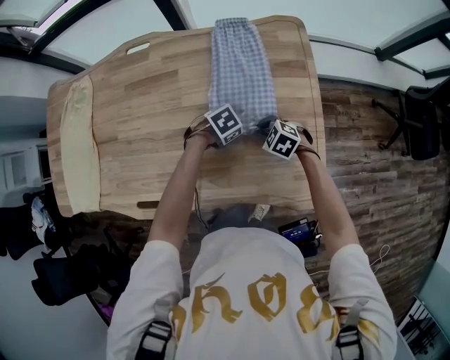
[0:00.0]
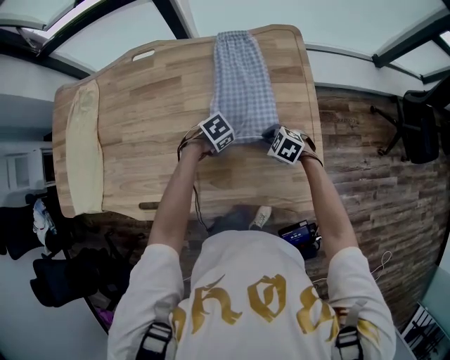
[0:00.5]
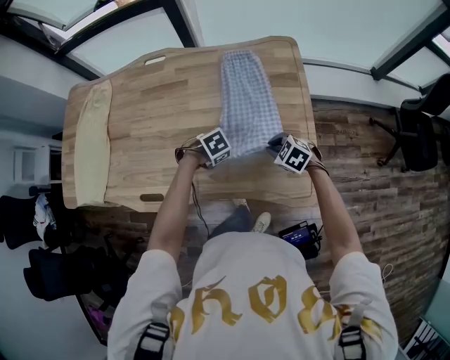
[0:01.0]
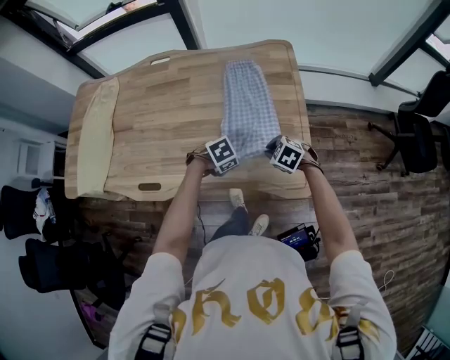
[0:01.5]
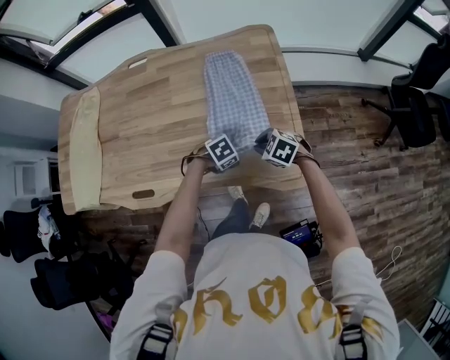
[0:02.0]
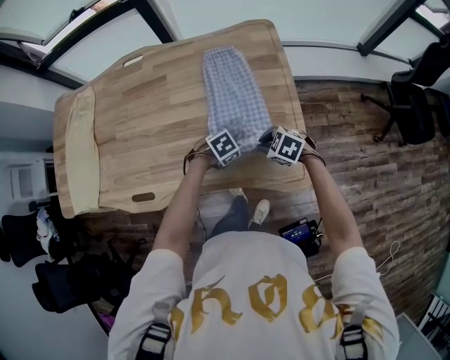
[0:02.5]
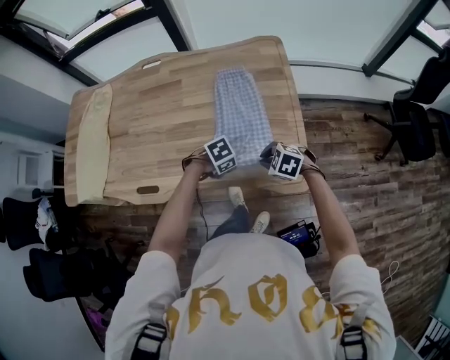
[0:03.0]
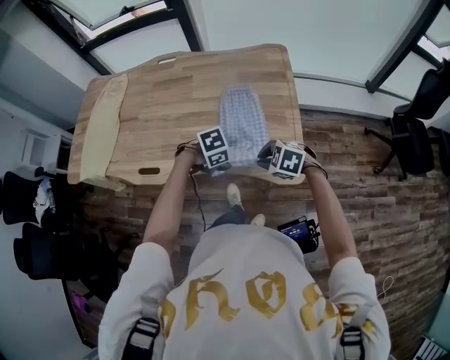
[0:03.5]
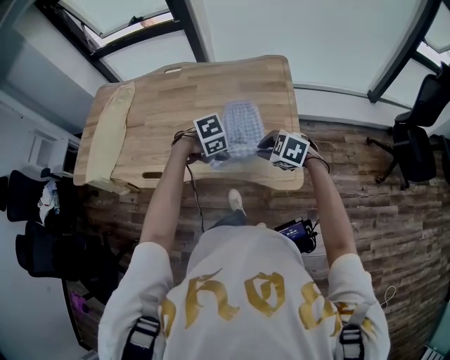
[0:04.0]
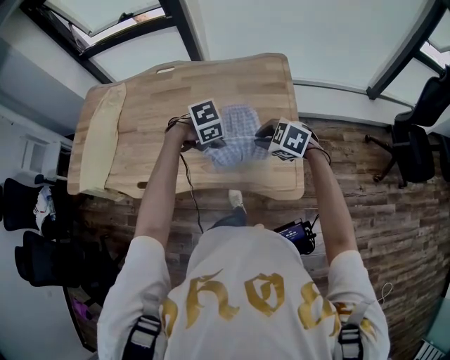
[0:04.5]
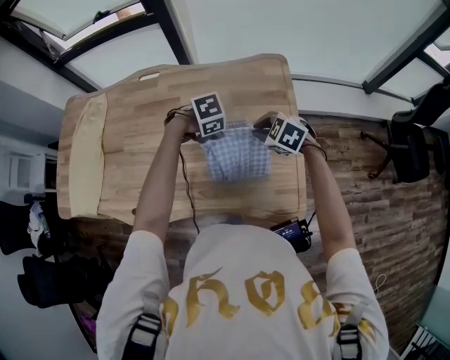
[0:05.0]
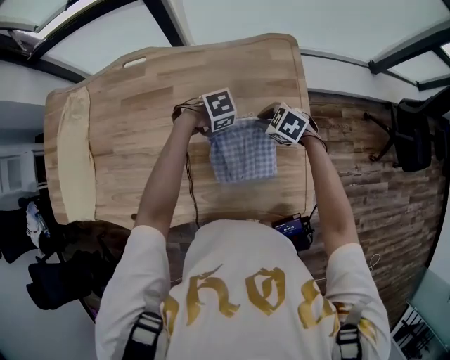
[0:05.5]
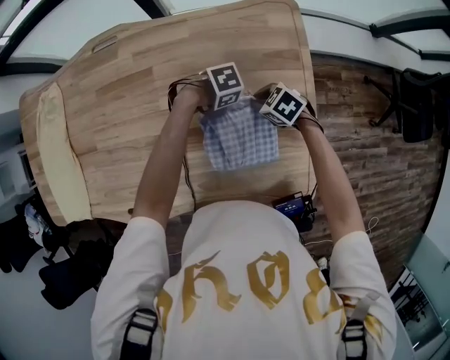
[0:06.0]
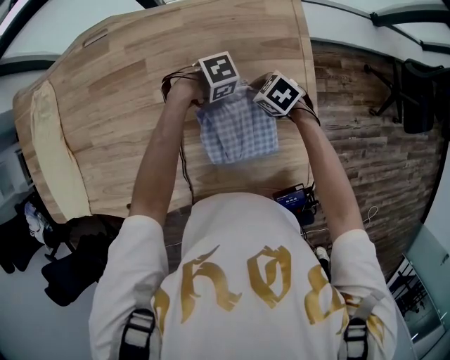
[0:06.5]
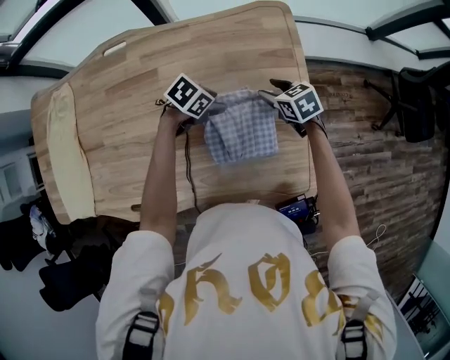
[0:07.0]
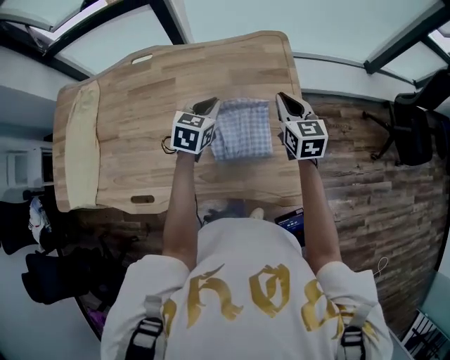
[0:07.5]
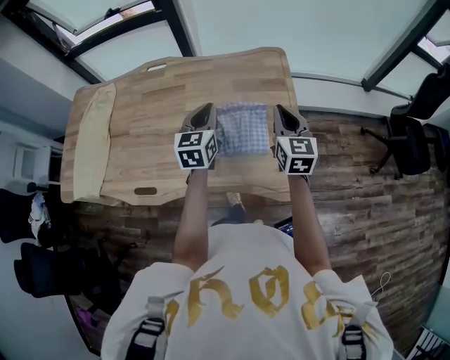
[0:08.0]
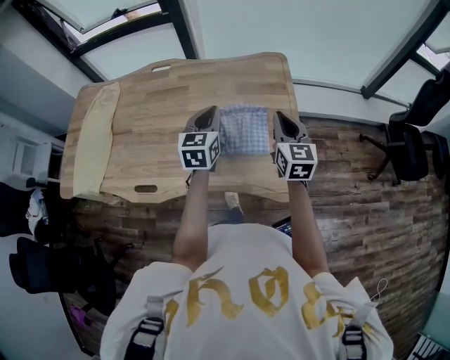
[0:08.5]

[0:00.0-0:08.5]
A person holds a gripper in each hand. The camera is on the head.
0:00.0 to 0:02.0: The left gripper shifts by roughly 15 cm, and opens up, while the right gripper shifts by some 15 cm.
0:02.0 to 0:04.0: Both grippers move upward, about 15 cm. The left gripper closes its fingers.
0:04.0 to 0:06.5: The right gripper ends up some 40 cm from where it was, and swivels about 40 degrees, while the left gripper changes place by roughly 40 cm, and swivels about 20 degrees.
0:06.5 to 0:08.5: The two grippers go about 30 cm upward. The left gripper angles its fingers upward, by some 40 degrees, and opens, then closes once more. The right gripper angles its fingers upward, by approximately 50 degrees, and opens, then closes again.

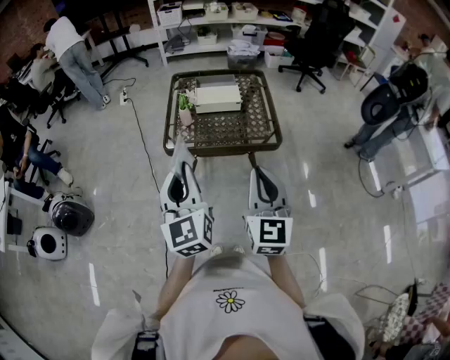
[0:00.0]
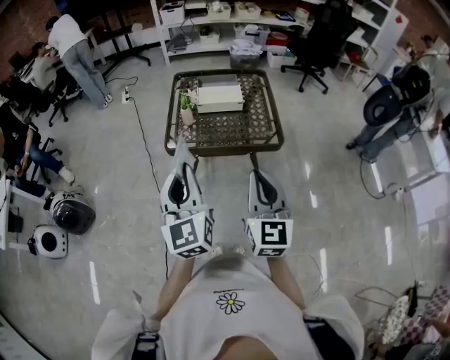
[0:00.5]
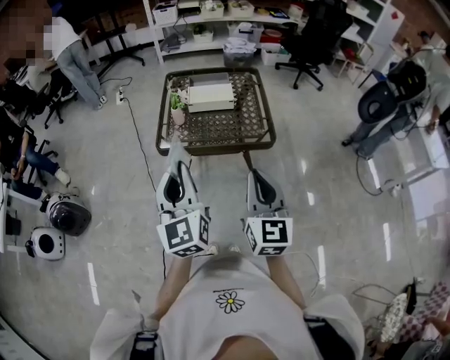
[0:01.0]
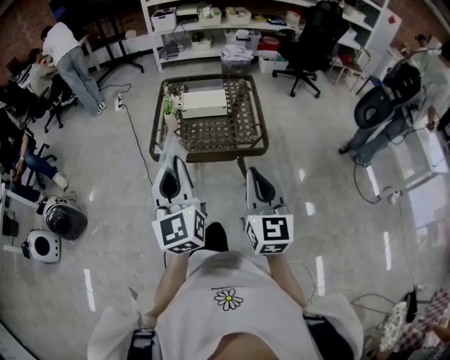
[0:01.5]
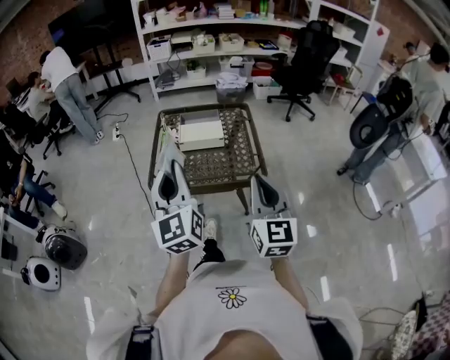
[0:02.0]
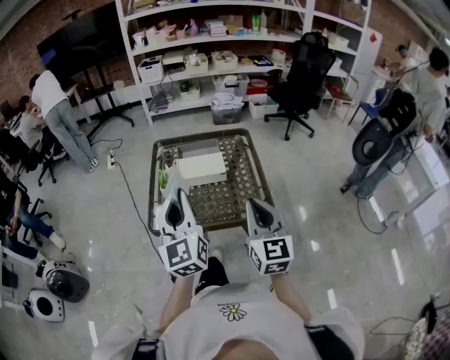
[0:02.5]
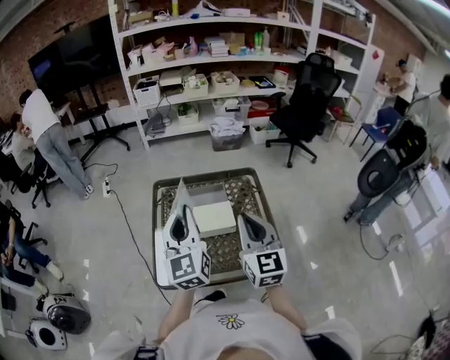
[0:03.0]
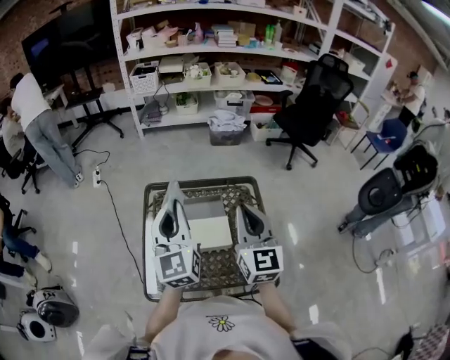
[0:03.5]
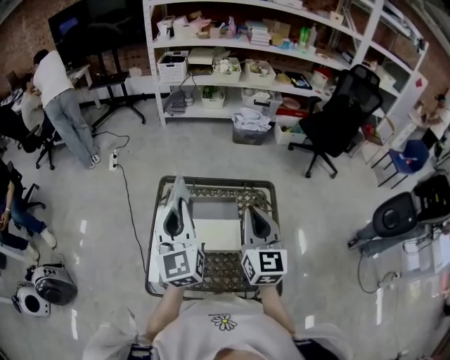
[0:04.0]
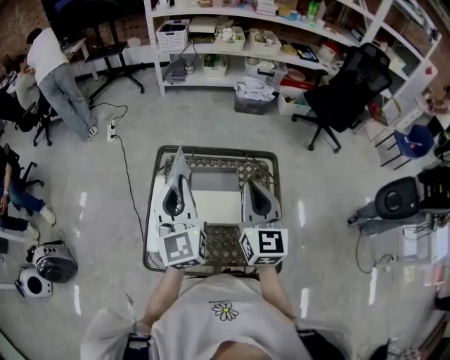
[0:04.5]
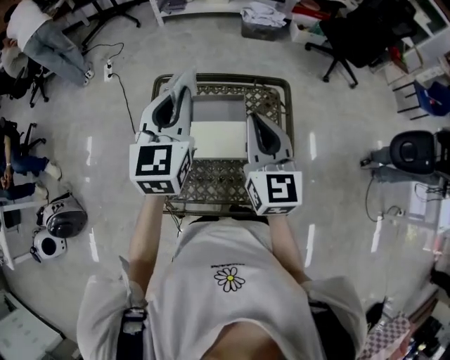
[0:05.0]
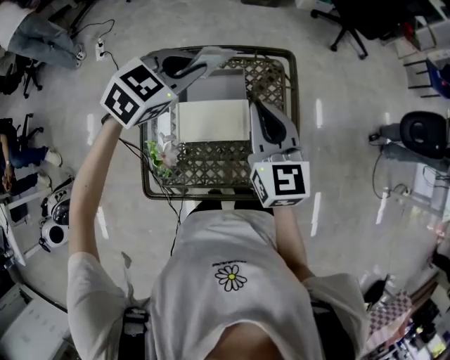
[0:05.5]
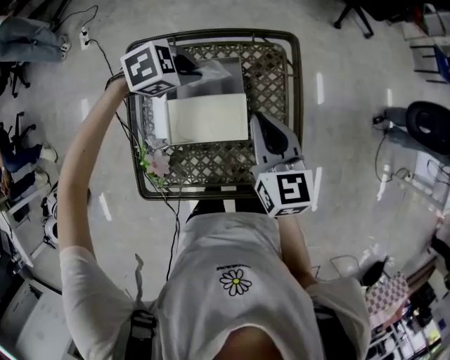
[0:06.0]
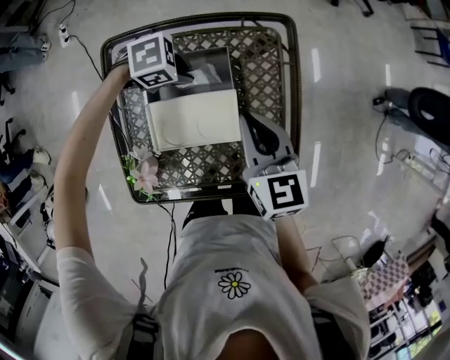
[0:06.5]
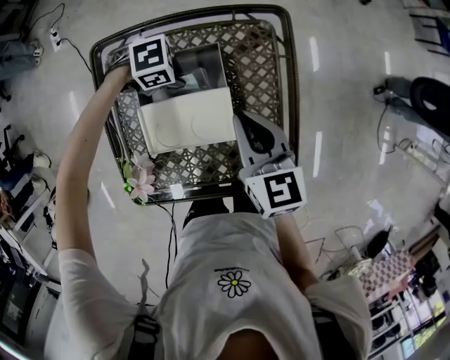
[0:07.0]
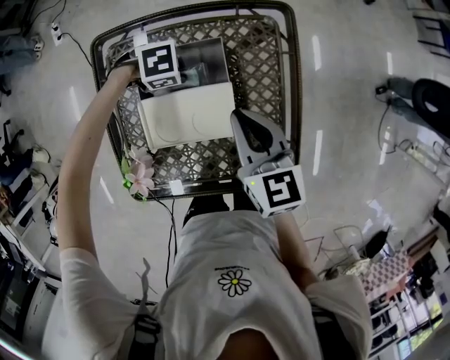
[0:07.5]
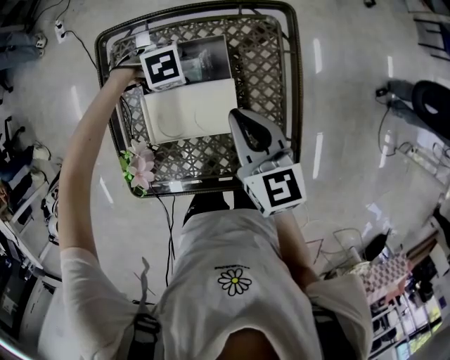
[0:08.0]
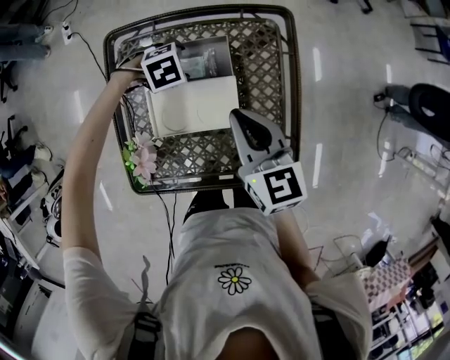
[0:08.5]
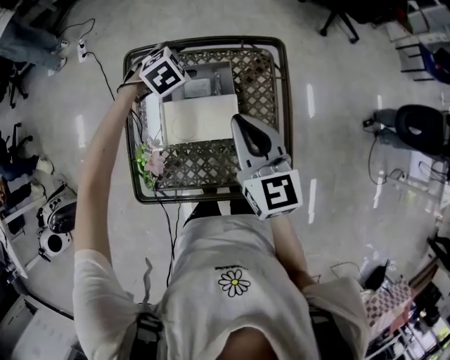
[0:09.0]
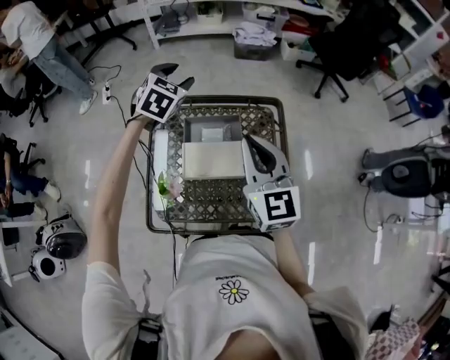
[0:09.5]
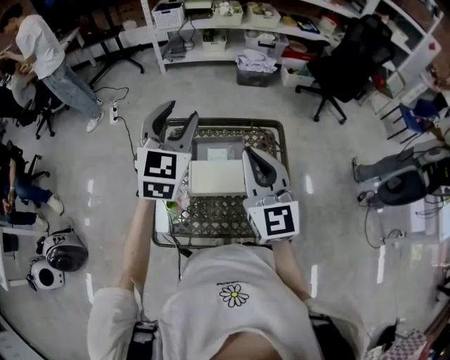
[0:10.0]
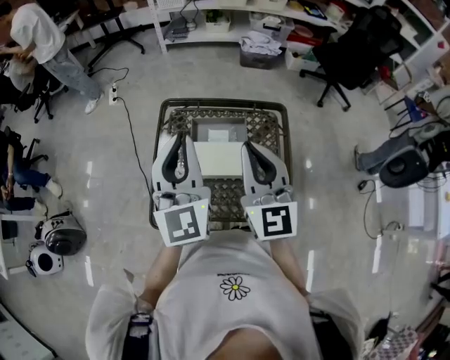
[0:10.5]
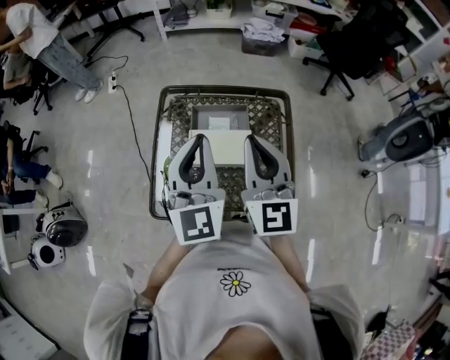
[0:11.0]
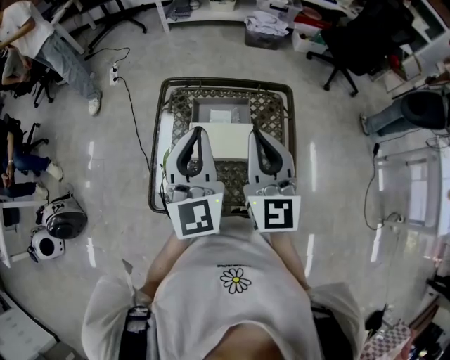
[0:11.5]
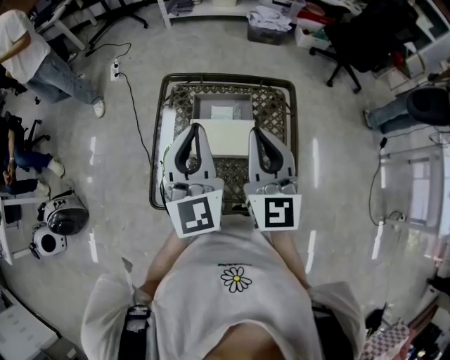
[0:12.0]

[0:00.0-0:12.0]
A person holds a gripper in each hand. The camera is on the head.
0:00.0 to 0:02.0: The right gripper goes approximately 10 cm to the right and forward. Meanwhile the left gripper goes approximately 10 cm forward and to the right.
0:02.0 to 0:04.0: The two grippers travel together, forward, some 50 cm.
0:04.0 to 0:06.0: The left gripper travels downward by about 30 cm, and tips its fingers downward by about 60 degrees, while the right gripper moves downward, roughly 15 cm, and turns by about 20 degrees.
0:06.0 to 0:08.0: The right gripper is displaced downward by some 5 cm; the left gripper goes roughly 15 cm downward, and opens up.
0:08.0 to 0:10.0: The left gripper is displaced upward by roughly 50 cm, and tips its fingers upward by some 70 degrees, while the right gripper travels upward by approximately 25 cm, and rotates approximately 40 degrees.
0:10.0 to 0:12.0: The left gripper is displaced backward by roughly 10 cm, rotates some 30 degrees, and closes.

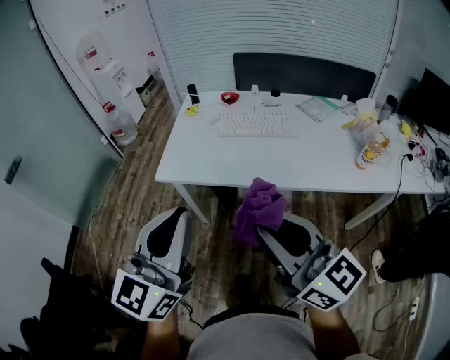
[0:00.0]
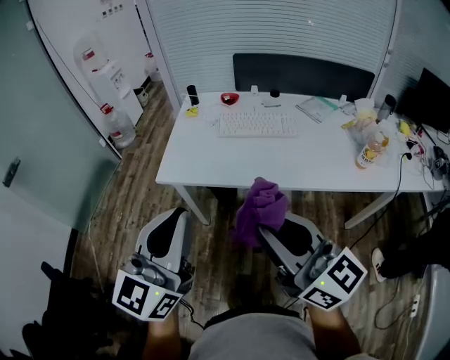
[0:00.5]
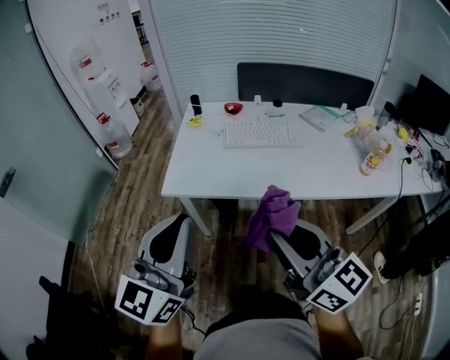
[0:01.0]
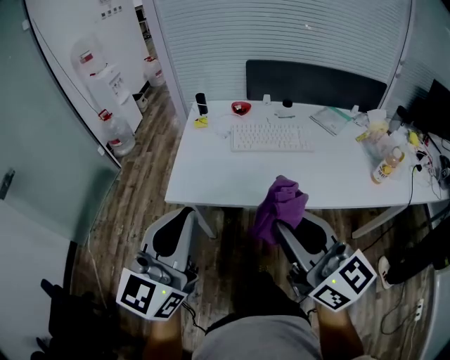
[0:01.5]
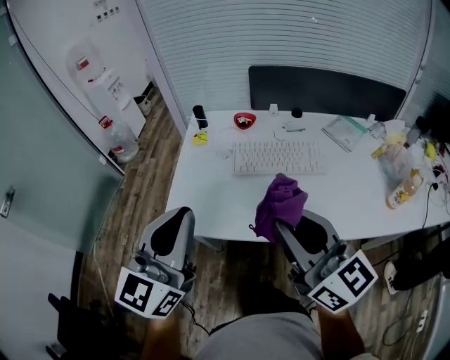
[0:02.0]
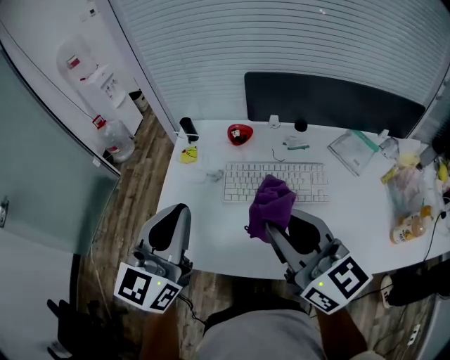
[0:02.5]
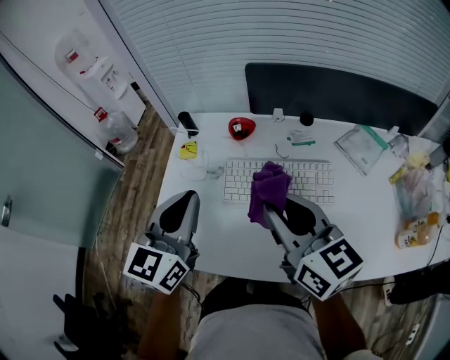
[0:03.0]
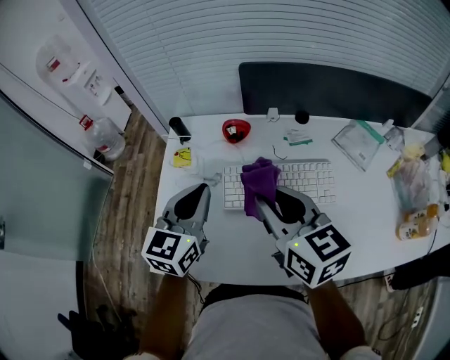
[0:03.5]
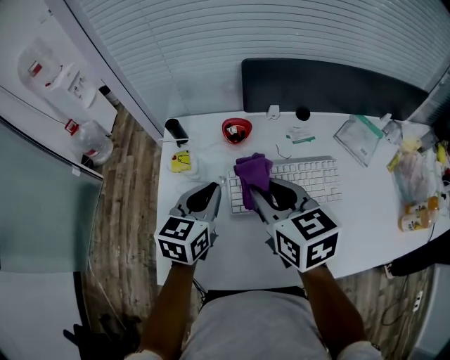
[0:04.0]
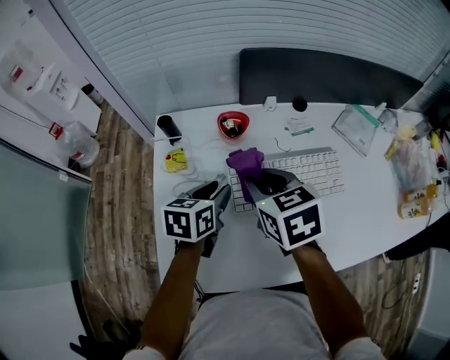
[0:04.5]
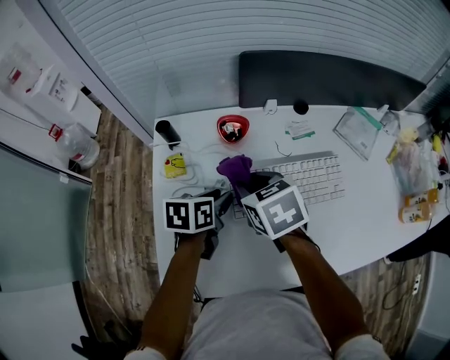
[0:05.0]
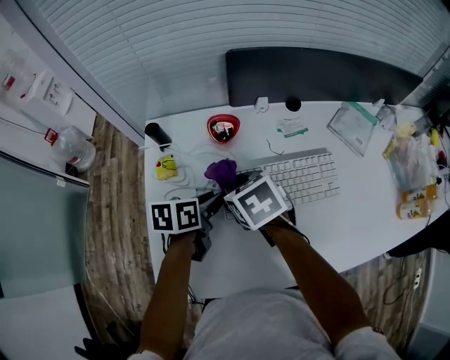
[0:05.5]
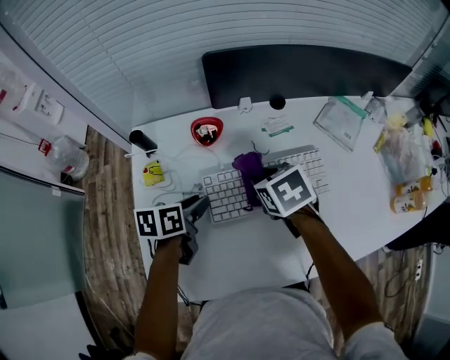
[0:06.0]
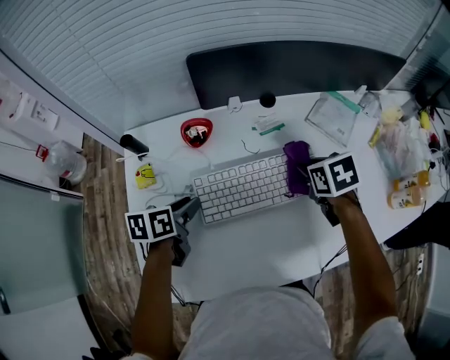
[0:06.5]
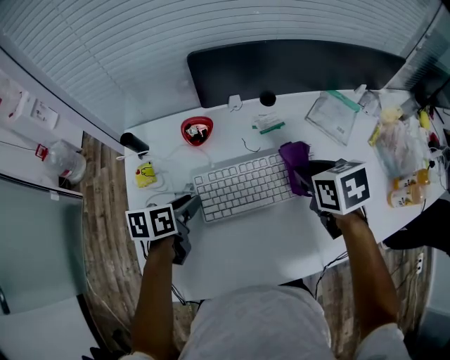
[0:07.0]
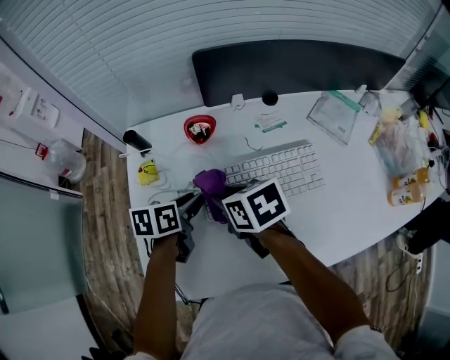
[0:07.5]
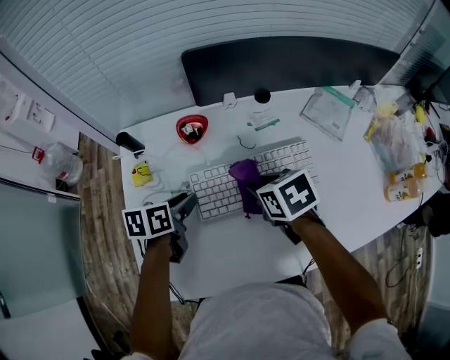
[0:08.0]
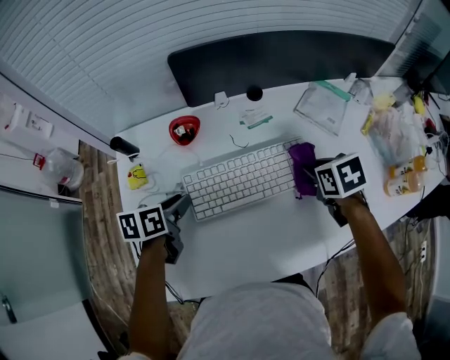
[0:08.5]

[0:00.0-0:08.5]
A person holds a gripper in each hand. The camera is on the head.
0:00.0 to 0:02.0: Both grippers move forward, about 25 cm.
0:02.0 to 0:04.0: The left gripper moves forward and downward, roughly 35 cm, and angles its fingers downward, by about 30 degrees. The right gripper heads forward, covering approximately 30 cm, and angles its fingers downward, by roughly 30 degrees.
0:04.0 to 0:06.5: The left gripper heads downward, covering approximately 10 cm, turns by about 40 degrees, and opens up, while the right gripper travels to the right, downward and forward by some 25 cm, and tips its fingers downward by approximately 30 degrees.
0:06.5 to 0:08.5: The right gripper moves about 25 cm to the left and comes back.
